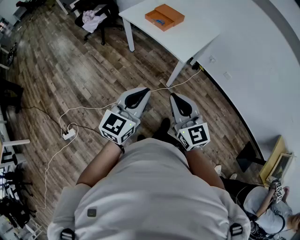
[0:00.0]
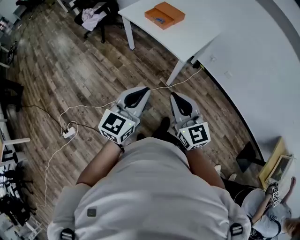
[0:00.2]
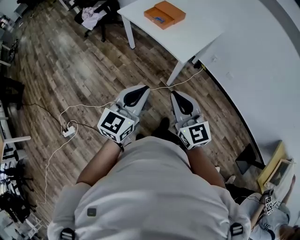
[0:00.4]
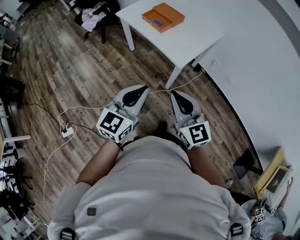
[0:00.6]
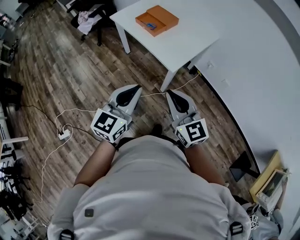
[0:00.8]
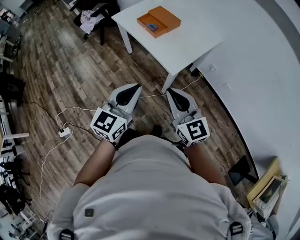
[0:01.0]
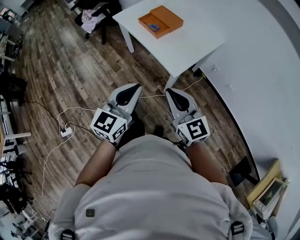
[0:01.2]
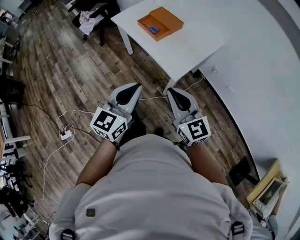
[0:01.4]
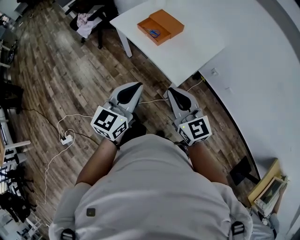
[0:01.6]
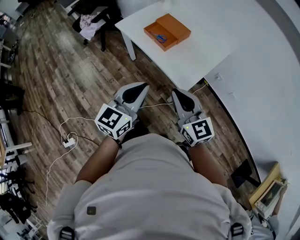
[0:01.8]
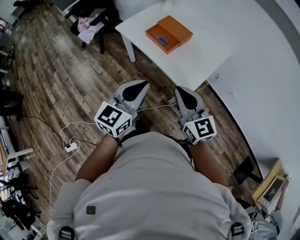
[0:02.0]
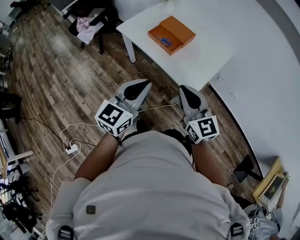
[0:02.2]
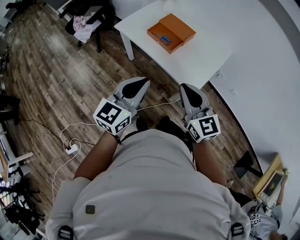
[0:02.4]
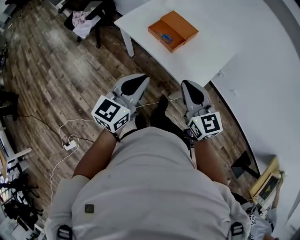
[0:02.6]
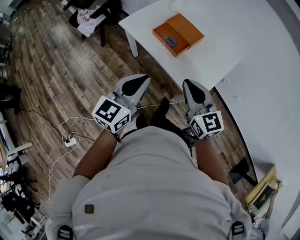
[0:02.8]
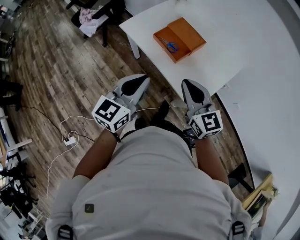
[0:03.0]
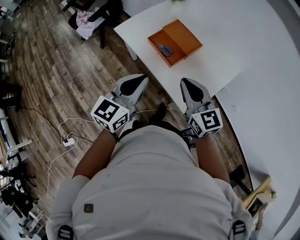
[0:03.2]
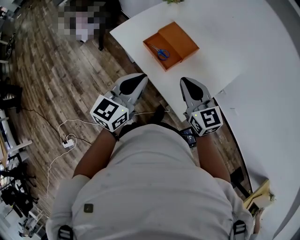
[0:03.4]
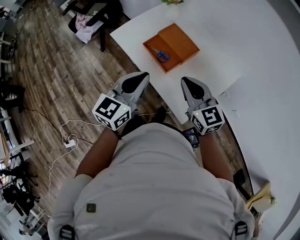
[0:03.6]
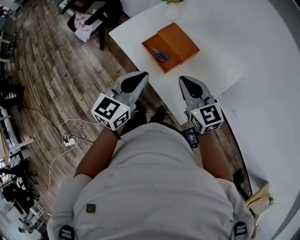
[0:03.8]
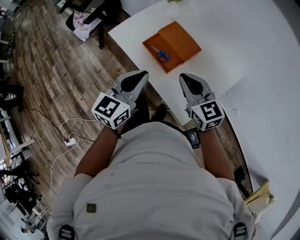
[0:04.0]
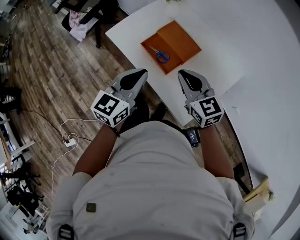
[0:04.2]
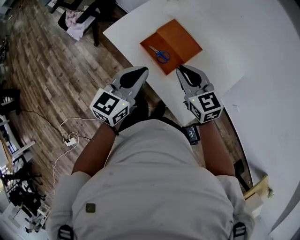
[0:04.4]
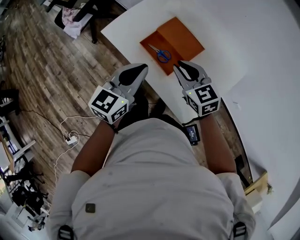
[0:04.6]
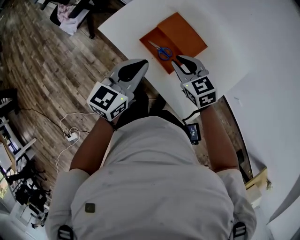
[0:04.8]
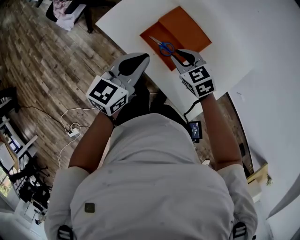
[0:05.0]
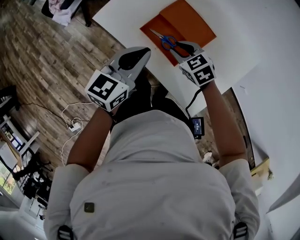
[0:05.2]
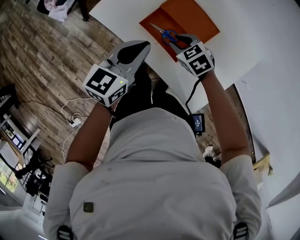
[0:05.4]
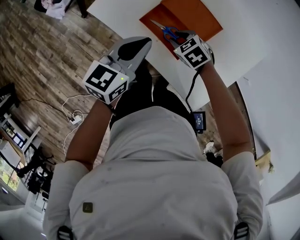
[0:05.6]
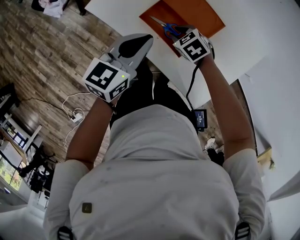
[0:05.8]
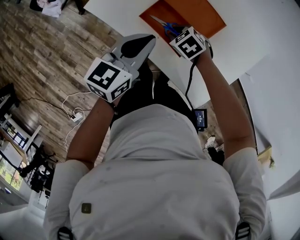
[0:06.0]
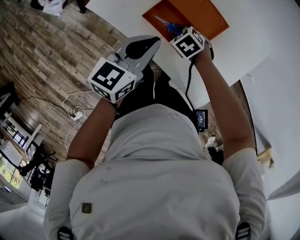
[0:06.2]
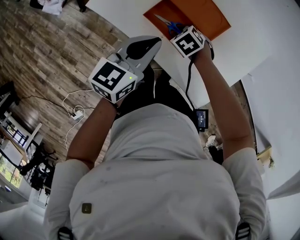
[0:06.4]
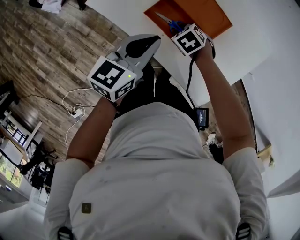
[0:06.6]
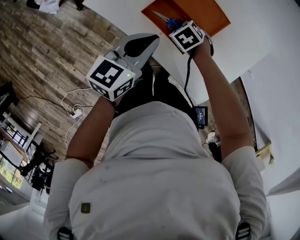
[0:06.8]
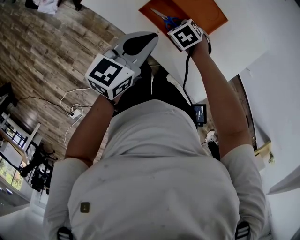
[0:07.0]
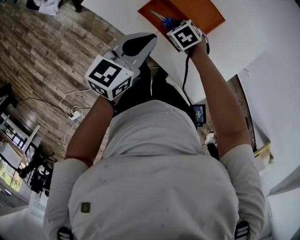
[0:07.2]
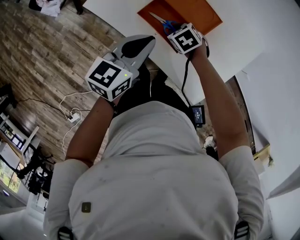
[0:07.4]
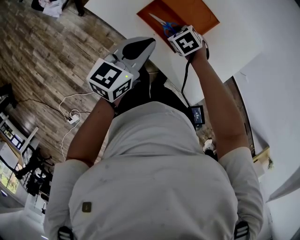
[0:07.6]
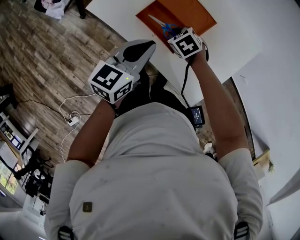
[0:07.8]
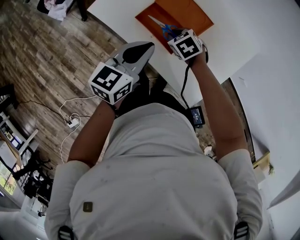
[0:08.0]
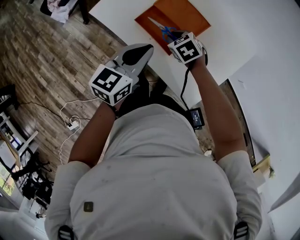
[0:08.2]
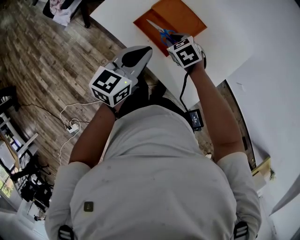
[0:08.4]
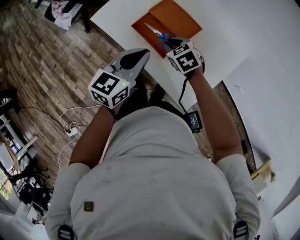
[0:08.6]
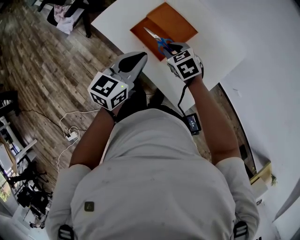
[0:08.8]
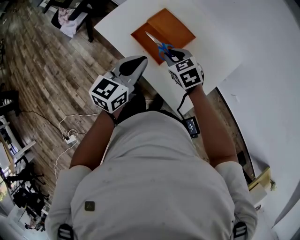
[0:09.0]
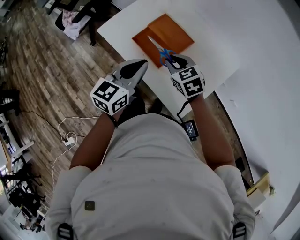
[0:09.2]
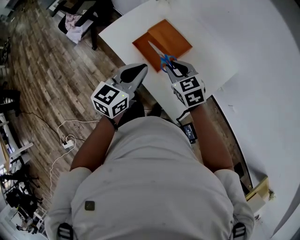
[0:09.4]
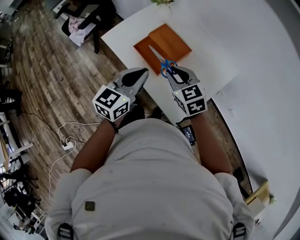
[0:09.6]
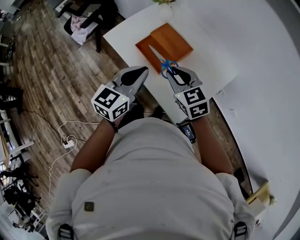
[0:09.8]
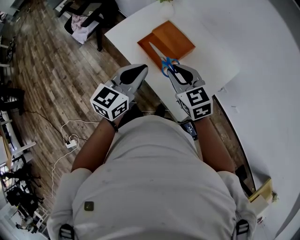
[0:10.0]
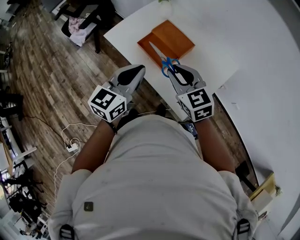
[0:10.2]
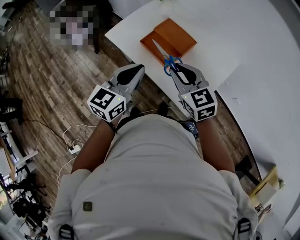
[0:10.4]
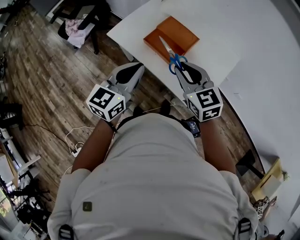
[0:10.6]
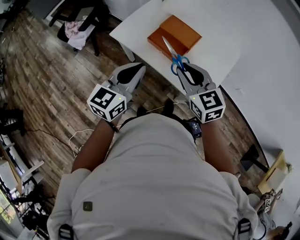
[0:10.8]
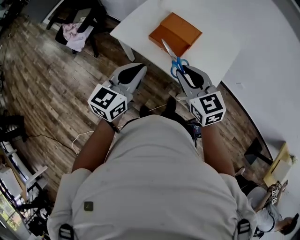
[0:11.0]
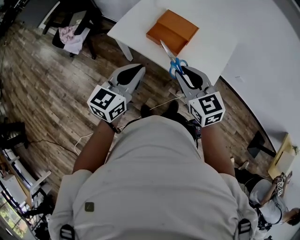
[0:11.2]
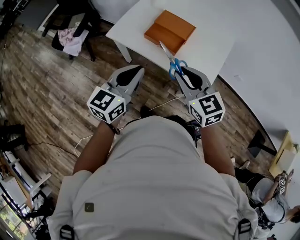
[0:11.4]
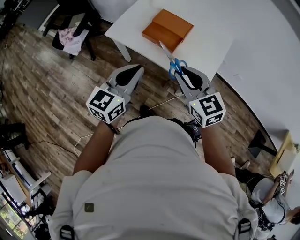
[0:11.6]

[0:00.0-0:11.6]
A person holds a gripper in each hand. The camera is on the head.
0:00.0 to 0:01.4: The right gripper moves forward and to the right, roughly 25 cm. The left gripper moves forward, approximately 20 cm.
0:01.4 to 0:02.8: The two grippers go some 25 cm forward and to the left.
0:02.8 to 0:04.4: The two grippers go approximately 25 cm forward.
0:04.4 to 0:05.8: The left gripper moves downward and forward, some 15 cm, while the right gripper shifts roughly 25 cm downward, and angles its fingers downward, by roughly 40 degrees.
0:05.8 to 0:07.2: The grippers make only small movements.
0:07.2 to 0:08.8: The left gripper heads upward and backward, covering about 10 cm, while the right gripper travels upward by approximately 15 cm.
0:08.8 to 0:10.2: The left gripper goes some 10 cm backward and upward, while the right gripper travels upward and backward by approximately 20 cm, and turns by some 30 degrees.
0:10.2 to 0:11.6: The grippers both shift backward and to the left by roughly 15 cm.

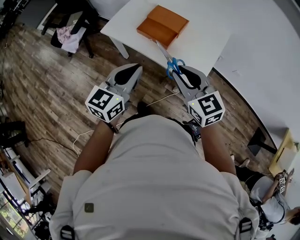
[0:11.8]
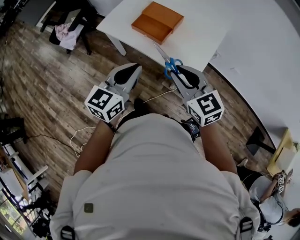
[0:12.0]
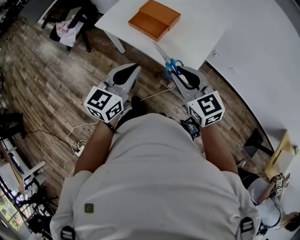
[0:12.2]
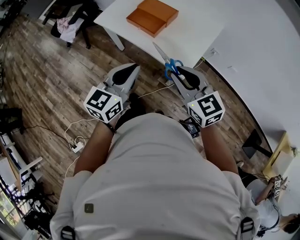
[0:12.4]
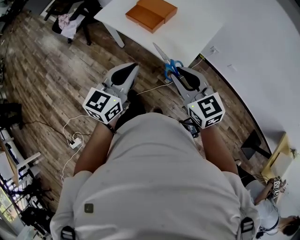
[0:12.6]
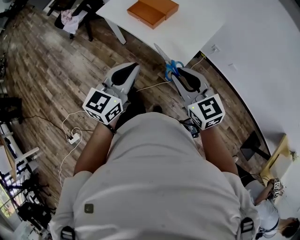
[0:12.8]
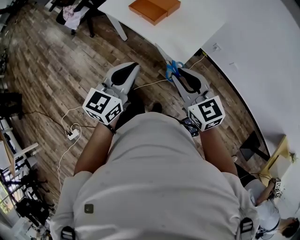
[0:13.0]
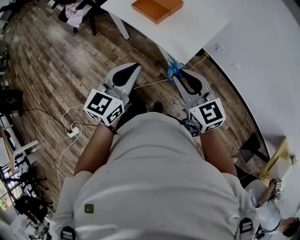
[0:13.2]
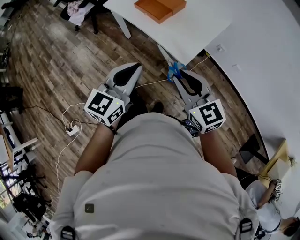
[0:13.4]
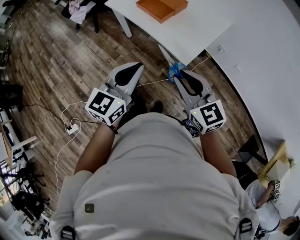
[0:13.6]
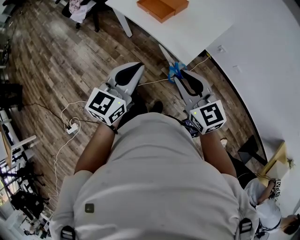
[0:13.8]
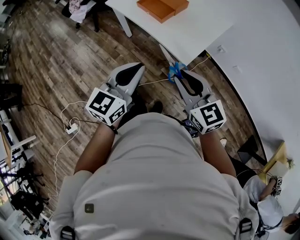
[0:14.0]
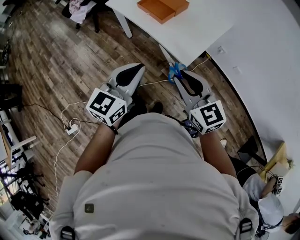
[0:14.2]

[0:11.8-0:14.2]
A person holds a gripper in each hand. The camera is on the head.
0:11.8 to 0:13.0: The two grippers go about 20 cm backward and to the right.
0:13.0 to 0:14.2: The grippers move only a little.

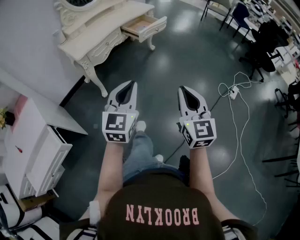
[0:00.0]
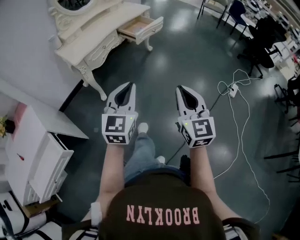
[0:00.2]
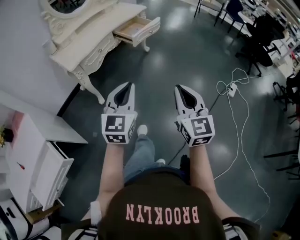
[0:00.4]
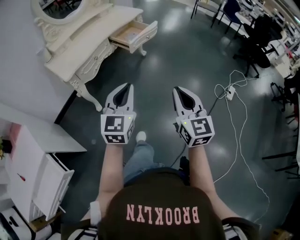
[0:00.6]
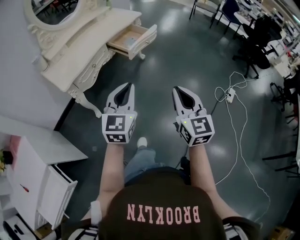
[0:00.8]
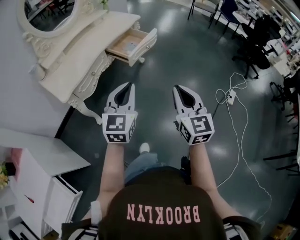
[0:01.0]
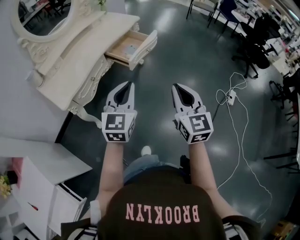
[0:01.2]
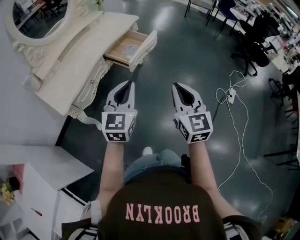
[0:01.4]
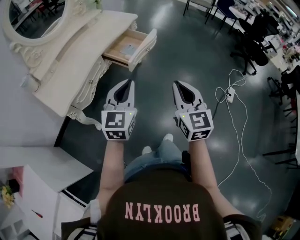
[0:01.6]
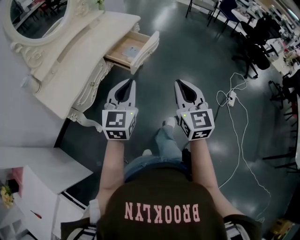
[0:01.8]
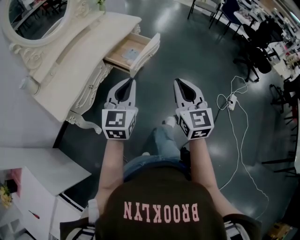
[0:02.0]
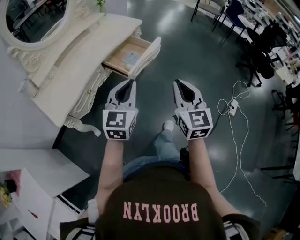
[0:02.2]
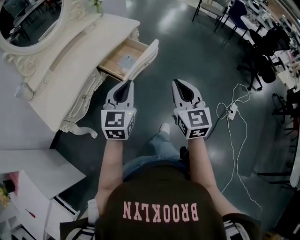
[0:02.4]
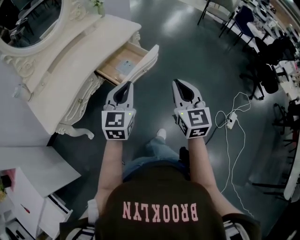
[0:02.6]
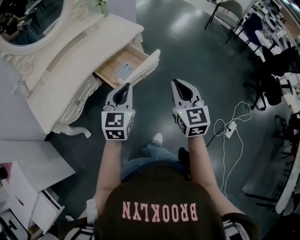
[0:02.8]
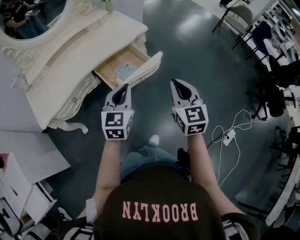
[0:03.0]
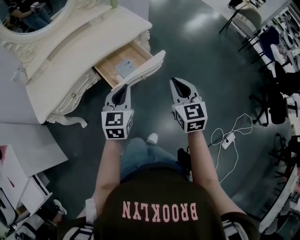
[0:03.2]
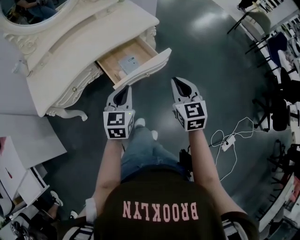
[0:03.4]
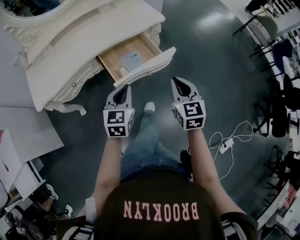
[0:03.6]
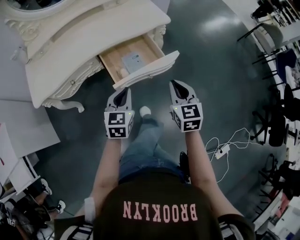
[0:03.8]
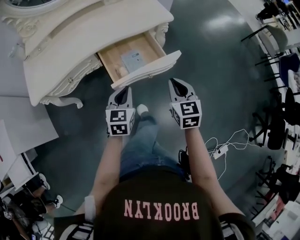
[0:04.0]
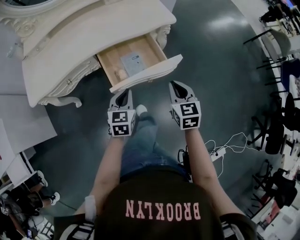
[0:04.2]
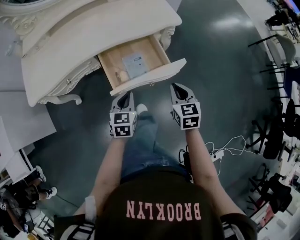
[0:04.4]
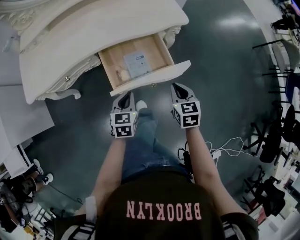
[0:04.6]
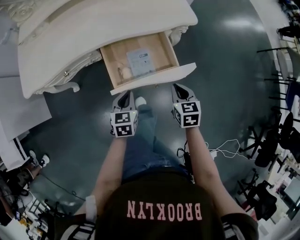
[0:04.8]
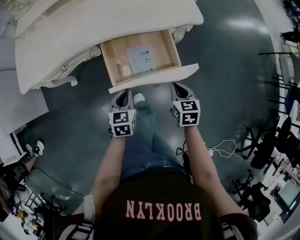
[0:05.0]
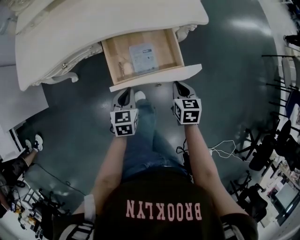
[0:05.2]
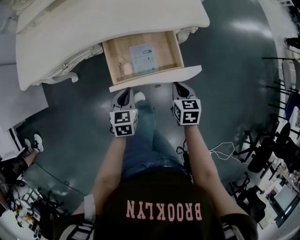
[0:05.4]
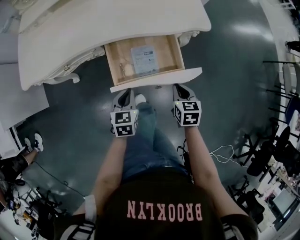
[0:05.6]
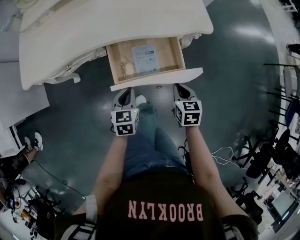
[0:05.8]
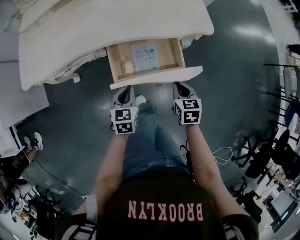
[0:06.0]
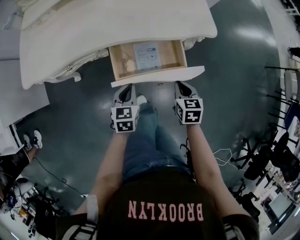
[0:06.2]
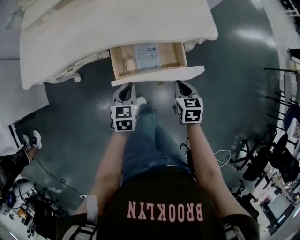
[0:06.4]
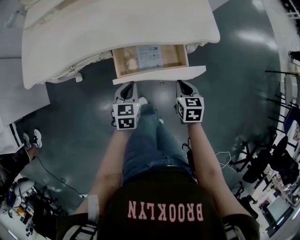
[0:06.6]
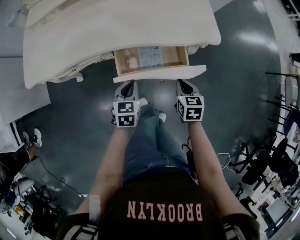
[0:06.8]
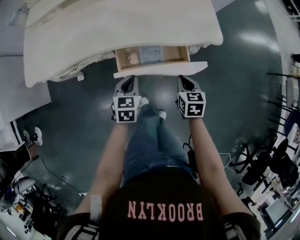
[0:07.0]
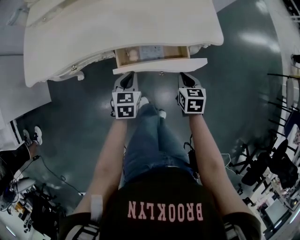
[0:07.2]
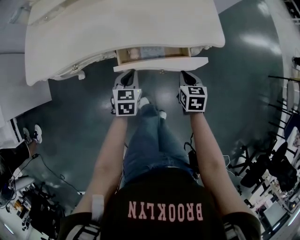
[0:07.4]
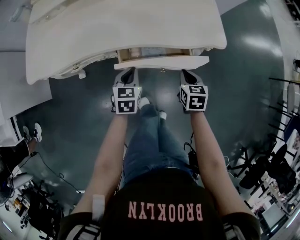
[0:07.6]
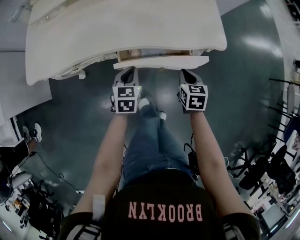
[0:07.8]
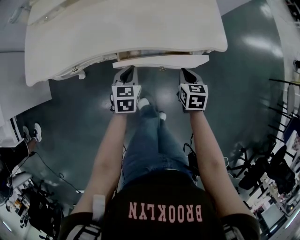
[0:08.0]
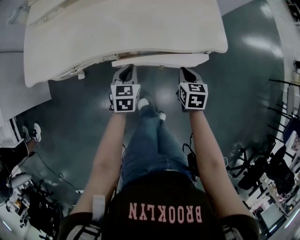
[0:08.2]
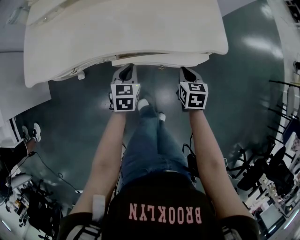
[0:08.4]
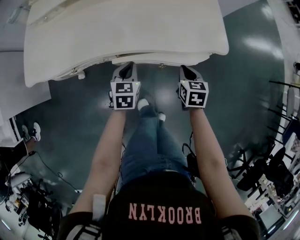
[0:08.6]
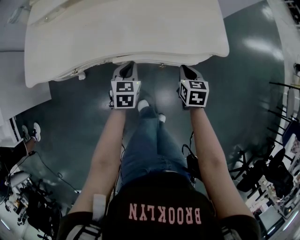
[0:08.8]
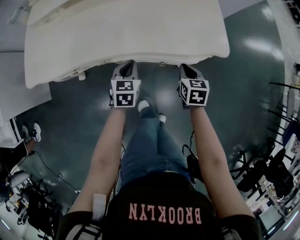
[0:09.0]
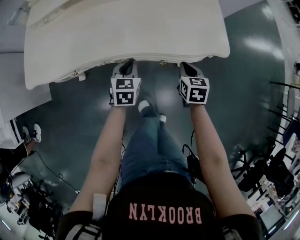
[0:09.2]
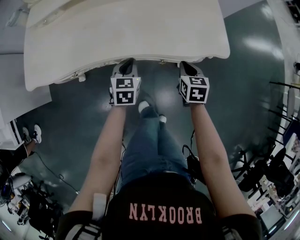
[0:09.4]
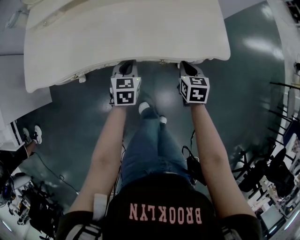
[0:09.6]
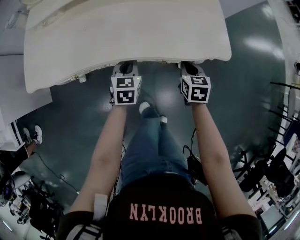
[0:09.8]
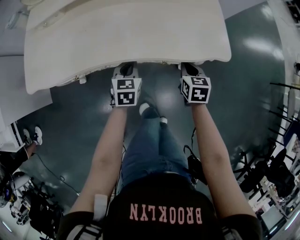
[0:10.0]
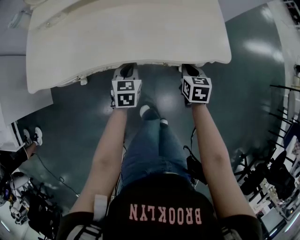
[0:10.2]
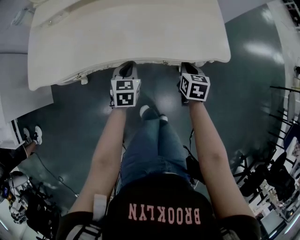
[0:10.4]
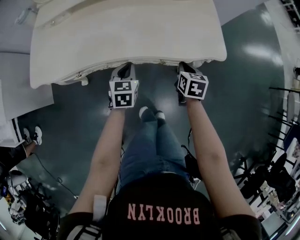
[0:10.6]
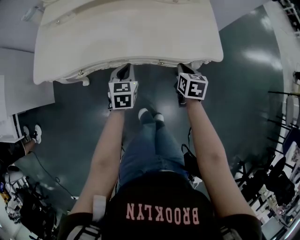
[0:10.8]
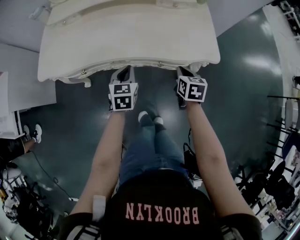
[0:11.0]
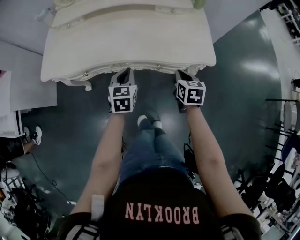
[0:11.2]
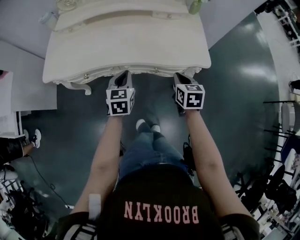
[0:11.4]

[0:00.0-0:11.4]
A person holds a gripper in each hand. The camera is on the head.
0:00.0 to 0:01.4: The two grippers go approximately 35 cm forward.
0:01.4 to 0:02.8: Both grippers move forward, about 30 cm.
0:02.8 to 0:04.2: The grippers both shift downward and forward by approximately 25 cm. The right gripper rotates roughly 30 degrees. The left gripper changes its angle by approximately 30 degrees.
0:04.2 to 0:05.6: The right gripper heads downward and forward, covering roughly 15 cm, and rotates about 20 degrees. The left gripper goes some 10 cm downward.
0:05.6 to 0:07.2: The two grippers go some 10 cm forward.
0:07.2 to 0:08.6: The two grippers go about 5 cm forward.
0:08.6 to 0:10.0: The grippers move only a little.
0:10.0 to 0:11.4: The grippers both shift upward and backward by approximately 15 cm.
